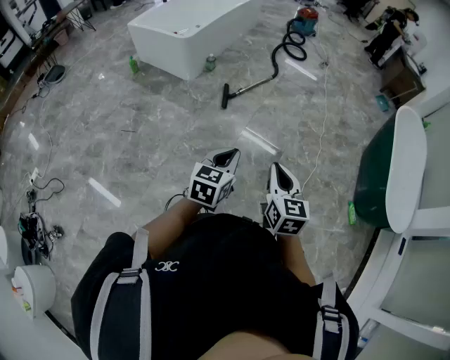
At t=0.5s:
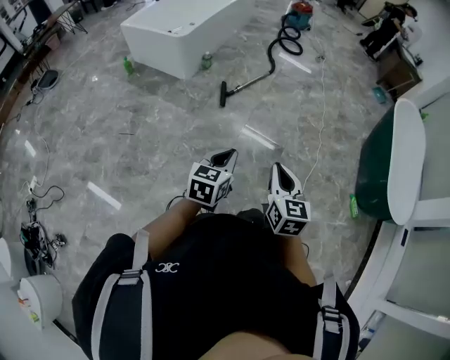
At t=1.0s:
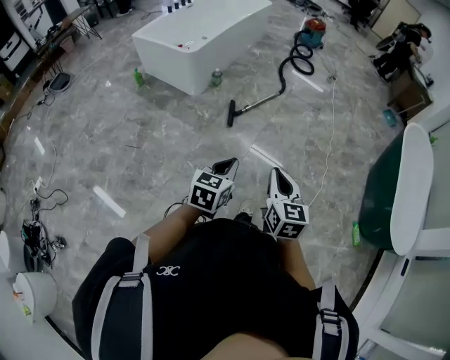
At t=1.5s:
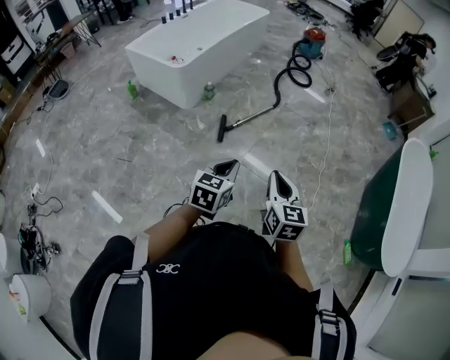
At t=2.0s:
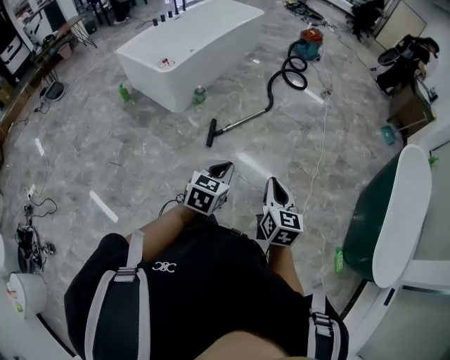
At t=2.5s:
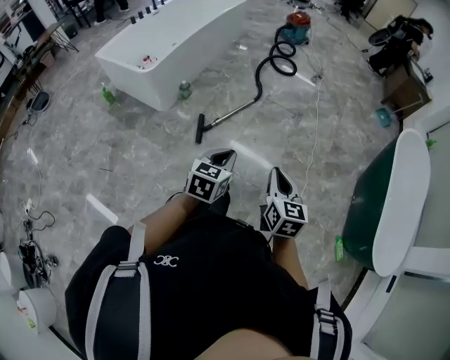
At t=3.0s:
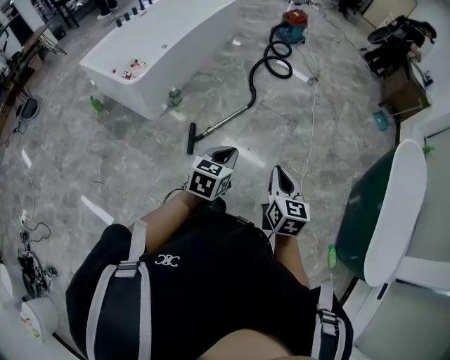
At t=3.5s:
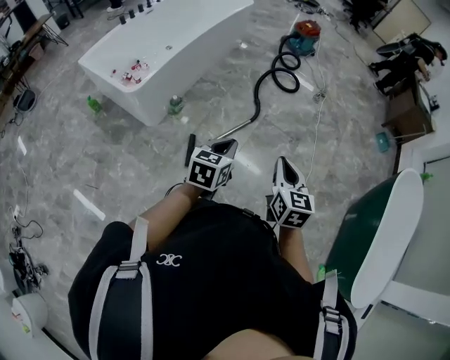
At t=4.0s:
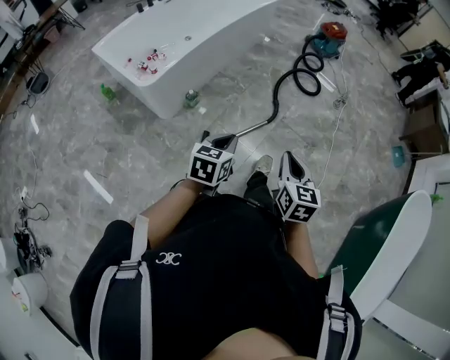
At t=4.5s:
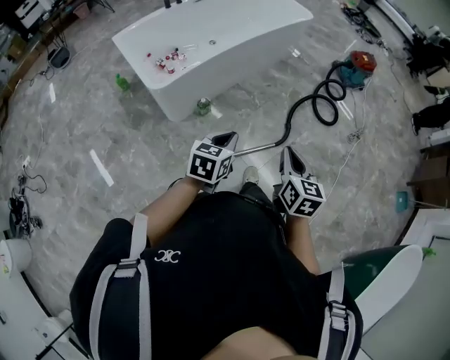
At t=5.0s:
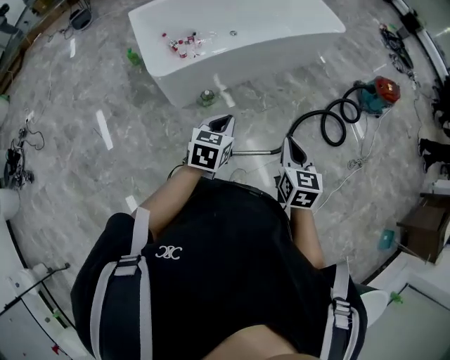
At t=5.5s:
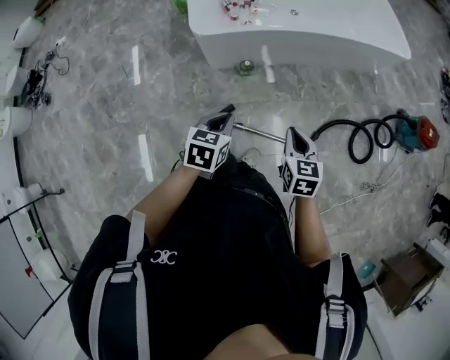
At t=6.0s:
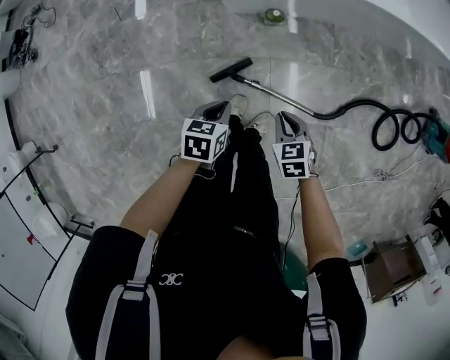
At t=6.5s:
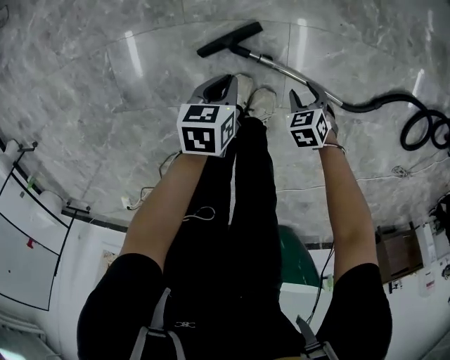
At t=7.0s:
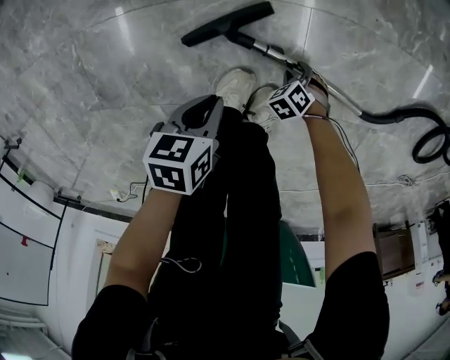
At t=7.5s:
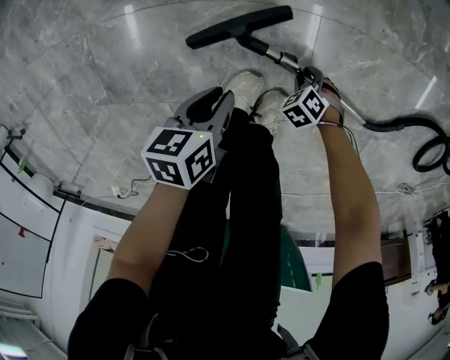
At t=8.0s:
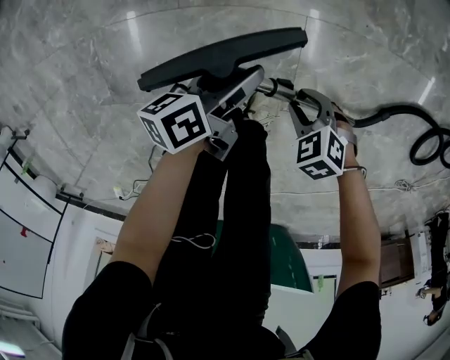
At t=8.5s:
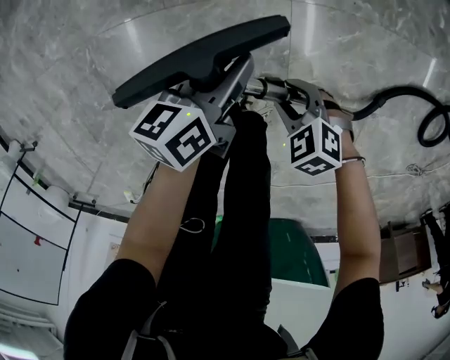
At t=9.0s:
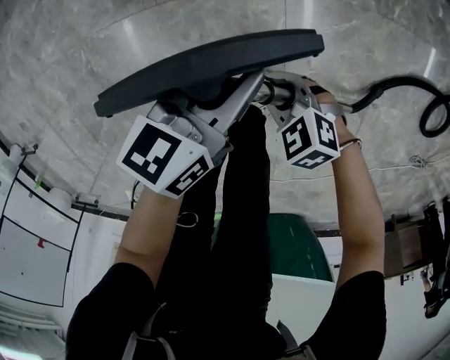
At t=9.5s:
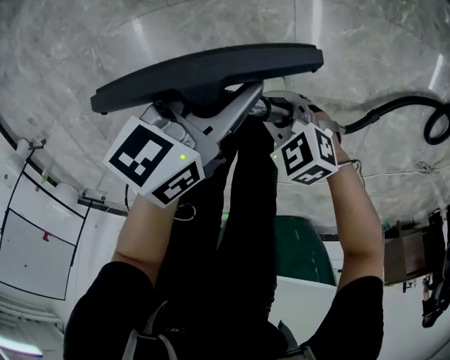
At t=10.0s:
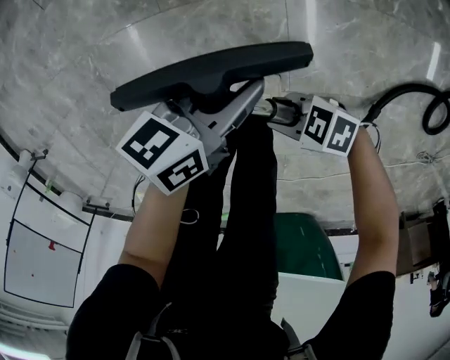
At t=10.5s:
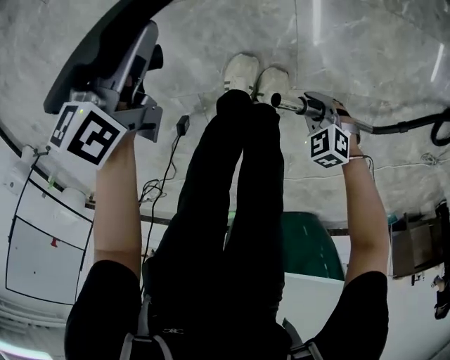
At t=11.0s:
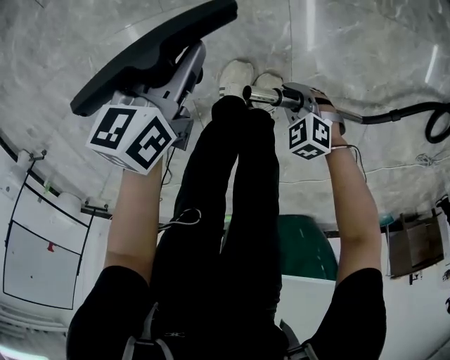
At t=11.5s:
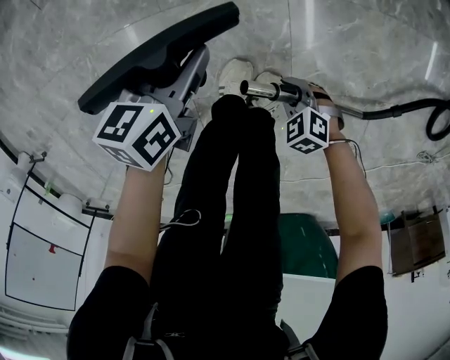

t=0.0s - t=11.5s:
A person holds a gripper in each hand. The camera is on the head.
t=0.0s - t=2.0s: The grippers both shift forward by approximately 35 cm.
t=2.0s - t=4.0s: The two grippers travel together, forward, approximately 50 cm.
t=4.0s - t=6.0s: The two grippers go some 35 cm downward. The left gripper rotates some 60 degrees, while the right gripper turns by about 80 degrees.
t=6.0s - t=7.5s: The two grippers go some 50 cm downward. The right gripper points its fingers approximately 30 degrees further downward, and opens its fingers. The left gripper changes its angle by about 20 degrees.
t=7.5s - t=9.5s: The left gripper is displaced upward by about 15 cm, changes its angle by roughly 30 degrees, and opens, then closes again. Meanwhile the right gripper travels upward by approximately 25 cm, and tips its fingers upward by roughly 40 degrees.
t=9.5s - t=11.5s: The right gripper moves downward, about 10 cm. The left gripper moves about 10 cm.

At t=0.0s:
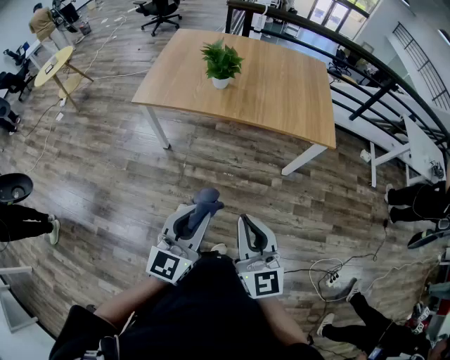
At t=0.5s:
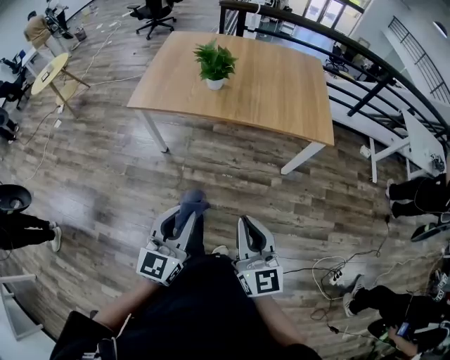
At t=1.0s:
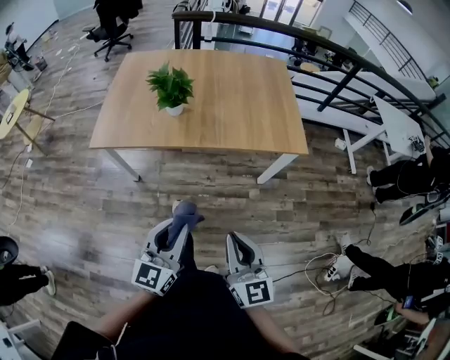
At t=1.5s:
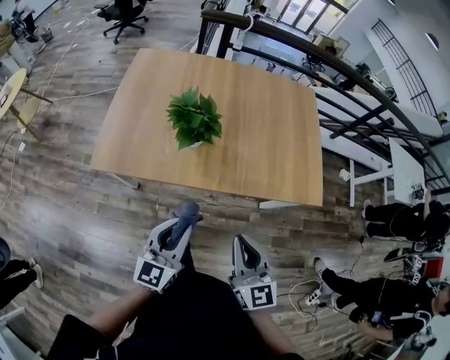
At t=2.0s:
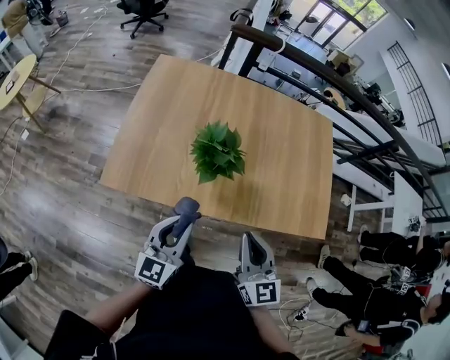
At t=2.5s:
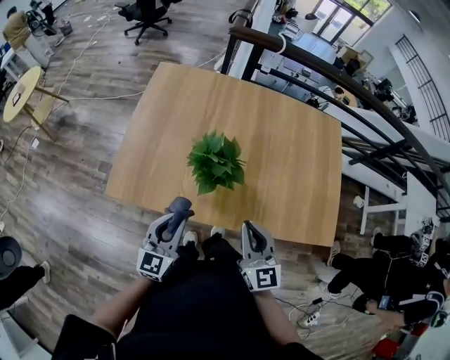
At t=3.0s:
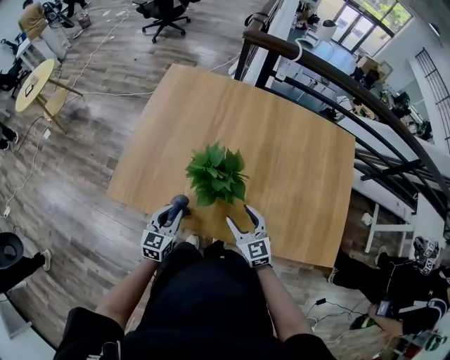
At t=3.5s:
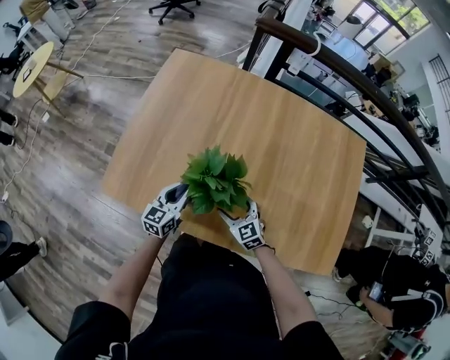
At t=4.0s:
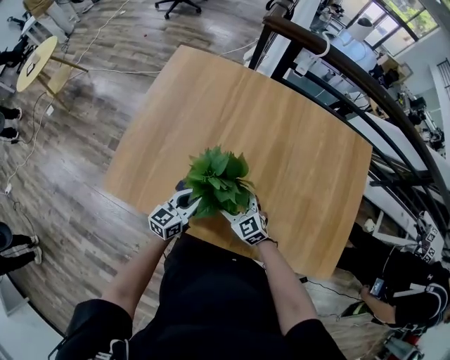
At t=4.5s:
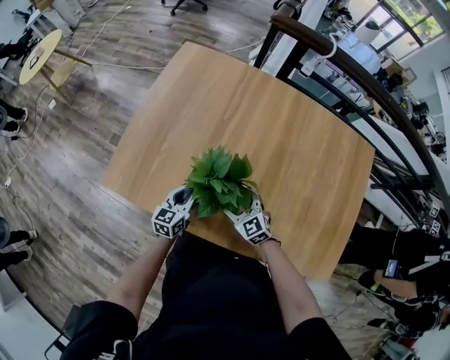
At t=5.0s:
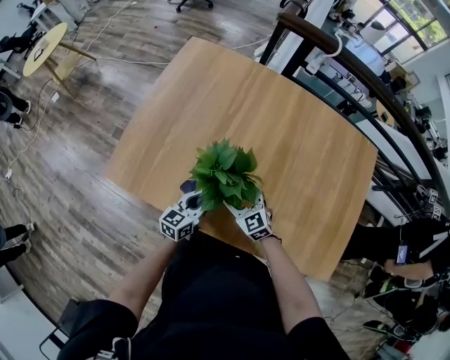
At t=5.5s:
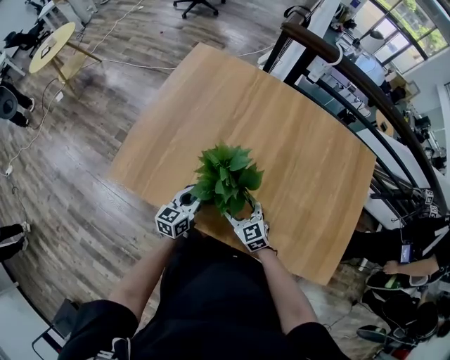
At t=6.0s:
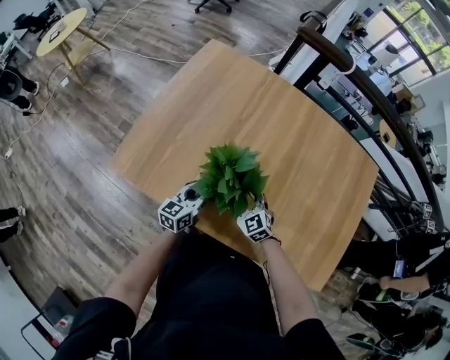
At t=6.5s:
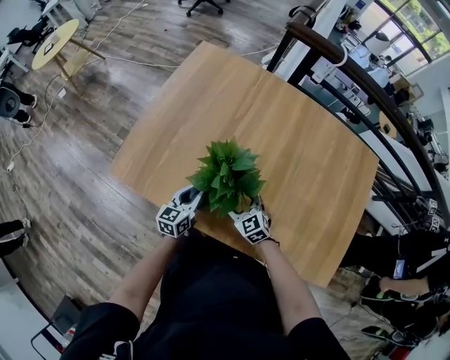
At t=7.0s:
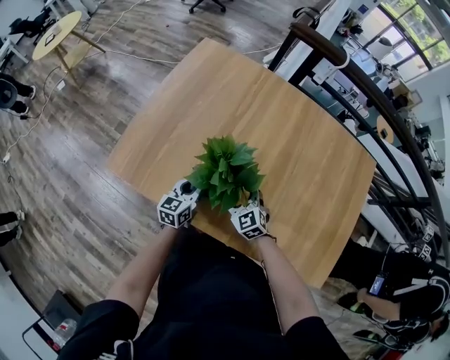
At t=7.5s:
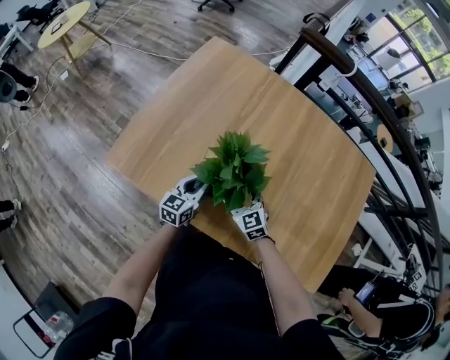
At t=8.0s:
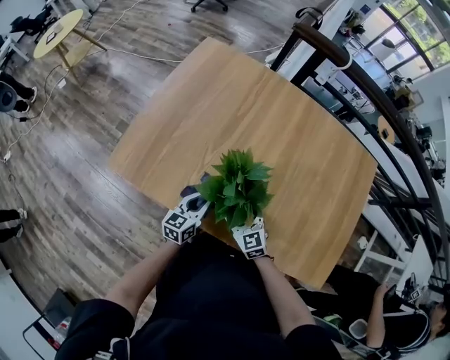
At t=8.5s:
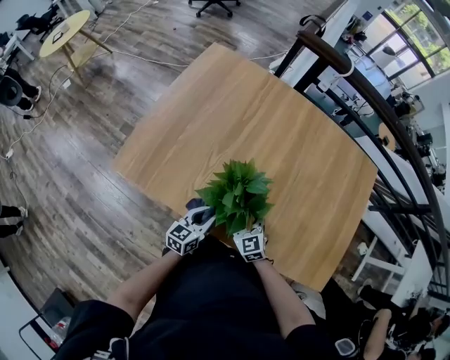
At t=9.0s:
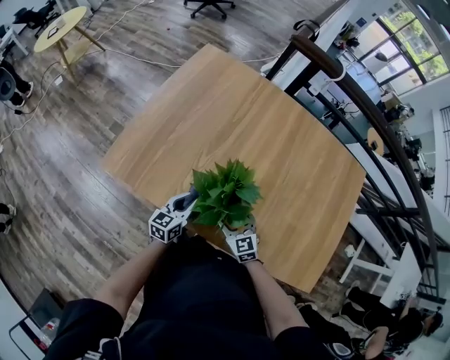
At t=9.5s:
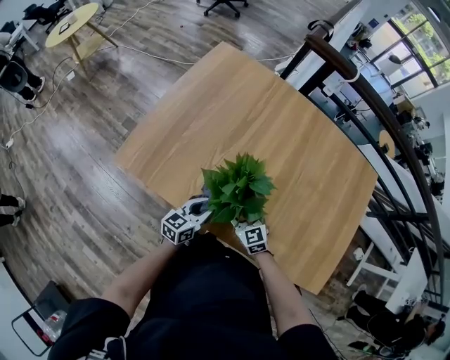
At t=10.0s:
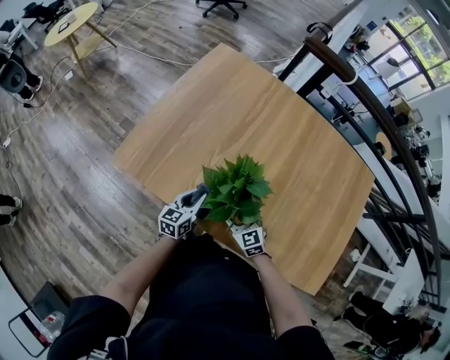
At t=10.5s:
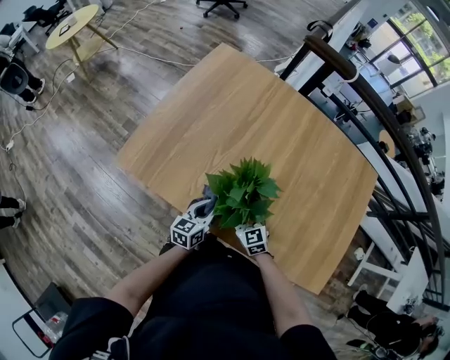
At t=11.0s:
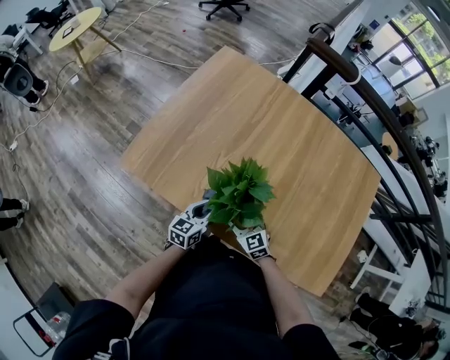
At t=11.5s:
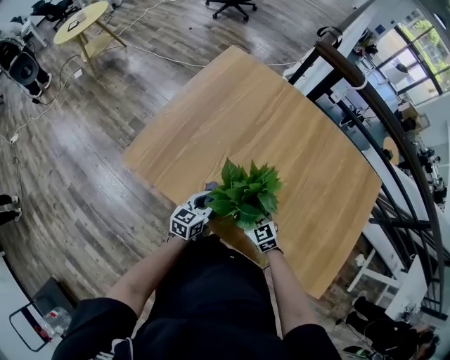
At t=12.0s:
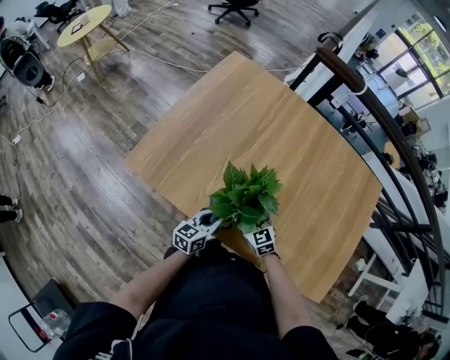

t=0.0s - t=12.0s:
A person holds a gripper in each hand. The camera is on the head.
t=0.0s - t=2.0s: The pair of grippers is taken forward, about 40 cm.
t=2.0s - t=4.0s: The grippers both shift downward and forward by approximately 30 cm. The right gripper swivels approximately 50 degrees, and opens up.
t=4.0s - t=6.0s: The grippers make only small movements.
t=6.0s - t=8.0s: The right gripper moves backward, some 5 cm.
t=8.0s - t=10.0s: The grippers move only a little.
t=10.0s - t=12.0s: The left gripper is displaced backward by about 5 cm.

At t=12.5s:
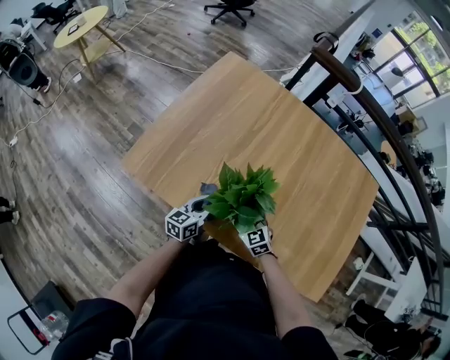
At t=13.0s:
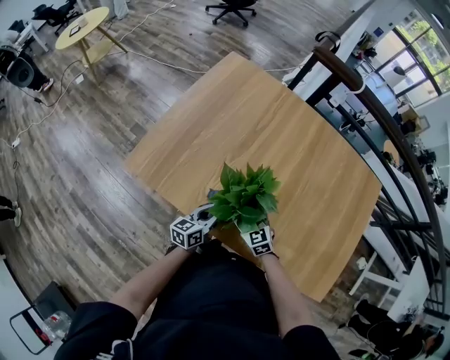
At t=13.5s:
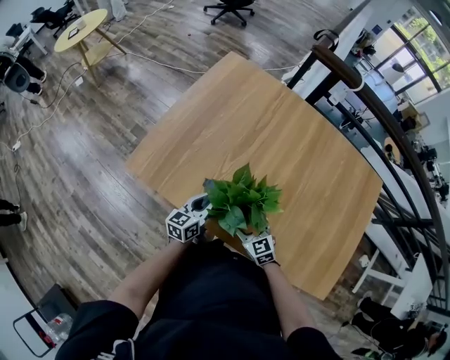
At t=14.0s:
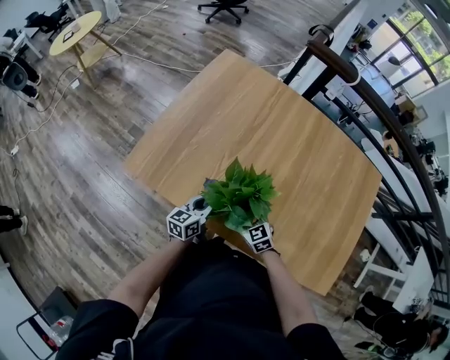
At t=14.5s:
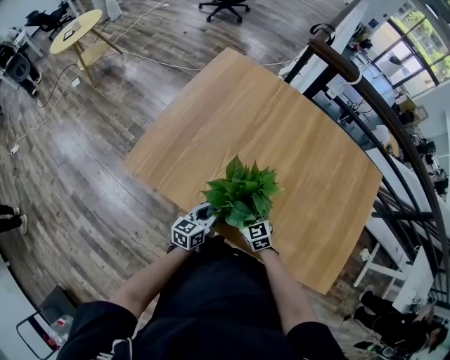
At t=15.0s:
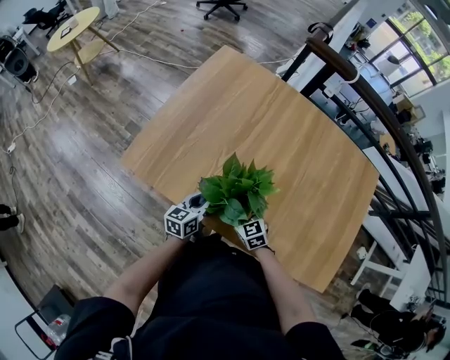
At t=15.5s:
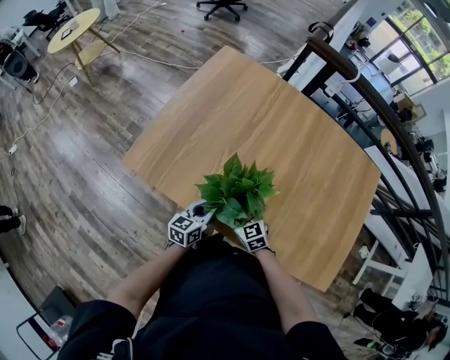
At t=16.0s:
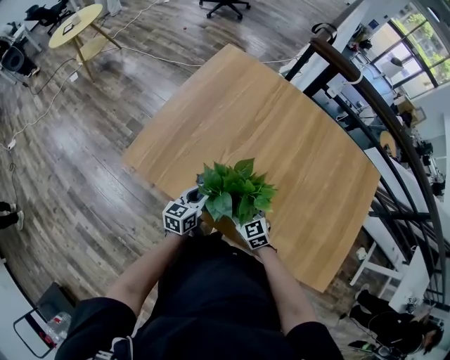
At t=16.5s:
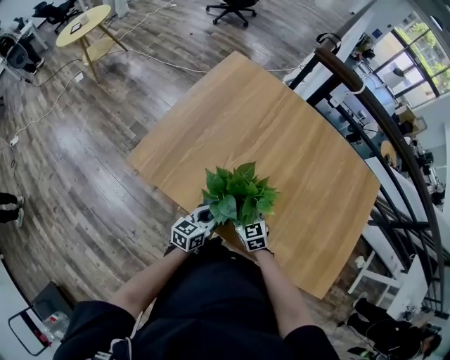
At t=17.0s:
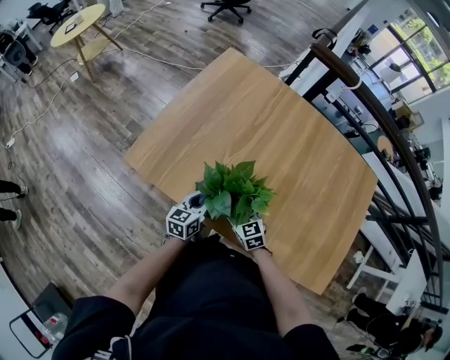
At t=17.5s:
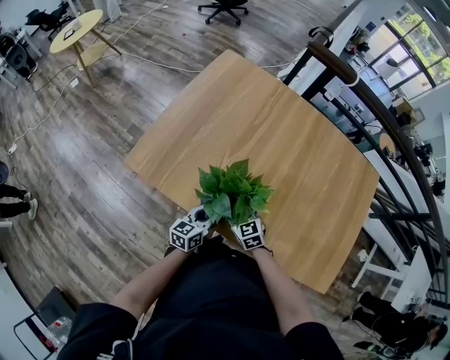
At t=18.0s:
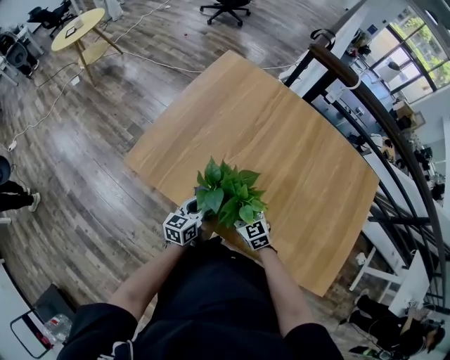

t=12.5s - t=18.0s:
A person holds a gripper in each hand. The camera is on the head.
t=12.5s - t=14.5s: The grippers make only small movements.
t=14.5s - t=16.0s: The left gripper shifts some 5 cm forward.
t=16.0s - t=18.0s: The left gripper goes forward and backward, approximately 5 cm each way, reversing 2 times.
